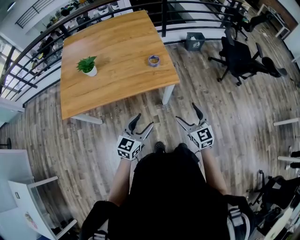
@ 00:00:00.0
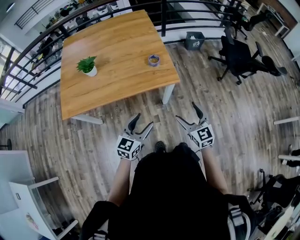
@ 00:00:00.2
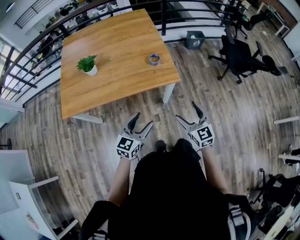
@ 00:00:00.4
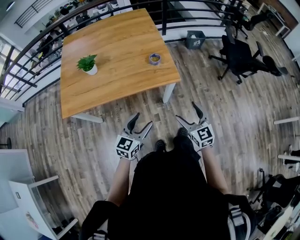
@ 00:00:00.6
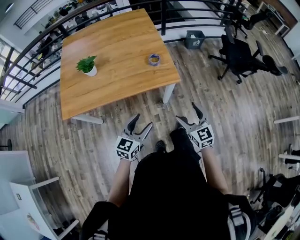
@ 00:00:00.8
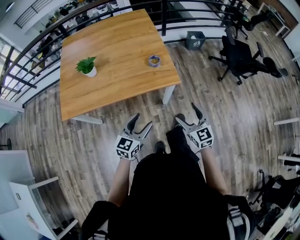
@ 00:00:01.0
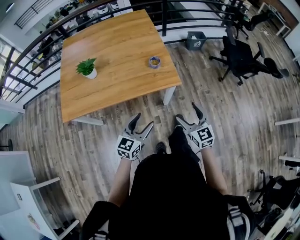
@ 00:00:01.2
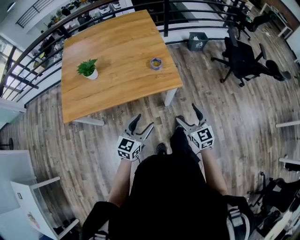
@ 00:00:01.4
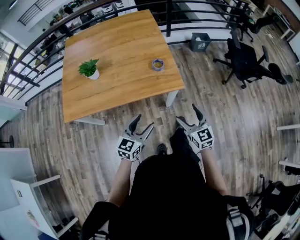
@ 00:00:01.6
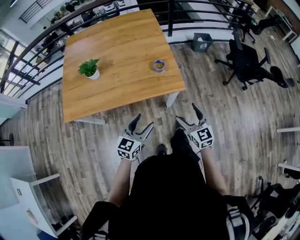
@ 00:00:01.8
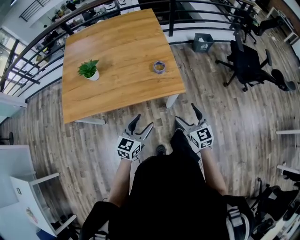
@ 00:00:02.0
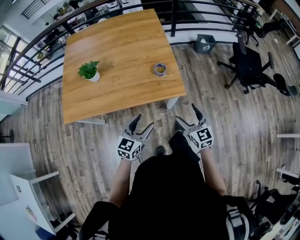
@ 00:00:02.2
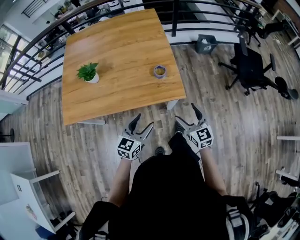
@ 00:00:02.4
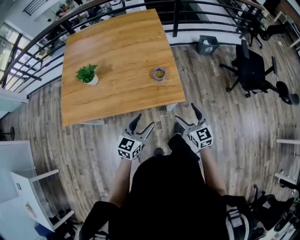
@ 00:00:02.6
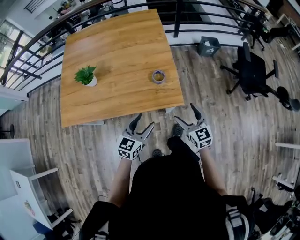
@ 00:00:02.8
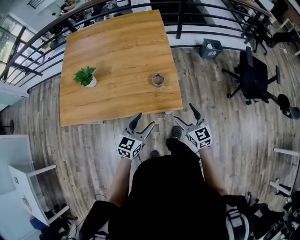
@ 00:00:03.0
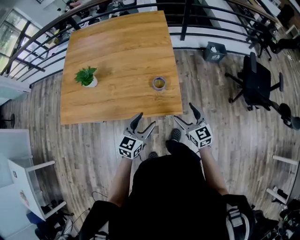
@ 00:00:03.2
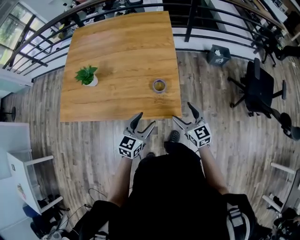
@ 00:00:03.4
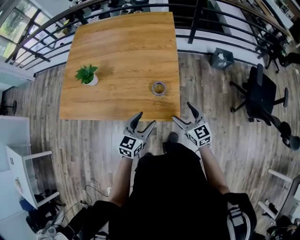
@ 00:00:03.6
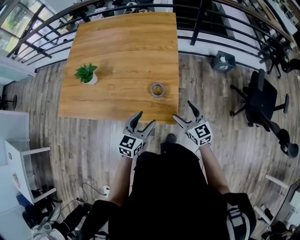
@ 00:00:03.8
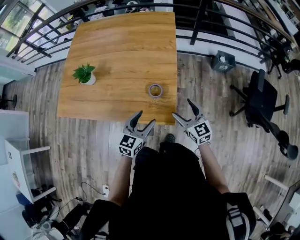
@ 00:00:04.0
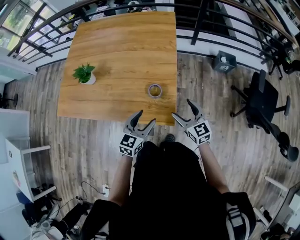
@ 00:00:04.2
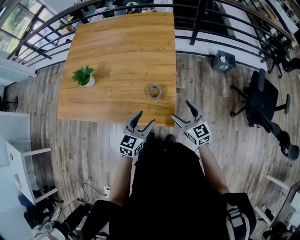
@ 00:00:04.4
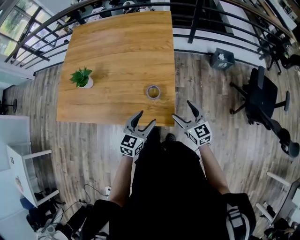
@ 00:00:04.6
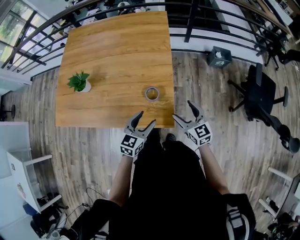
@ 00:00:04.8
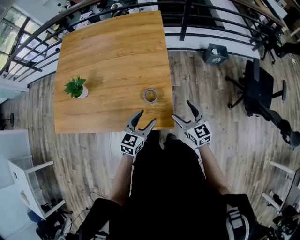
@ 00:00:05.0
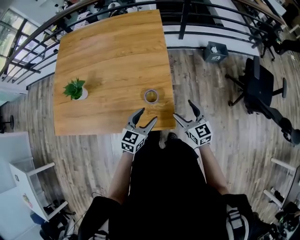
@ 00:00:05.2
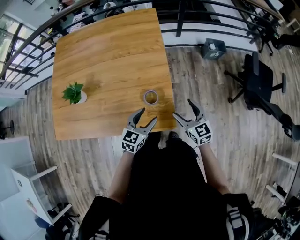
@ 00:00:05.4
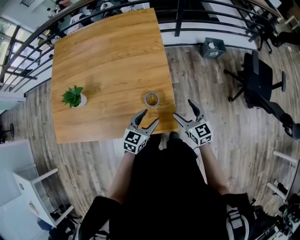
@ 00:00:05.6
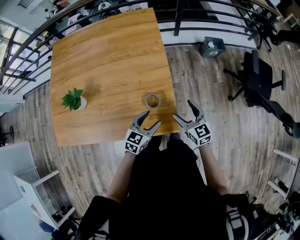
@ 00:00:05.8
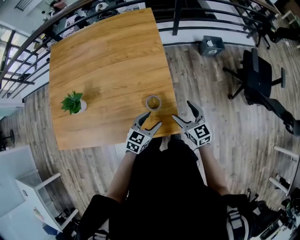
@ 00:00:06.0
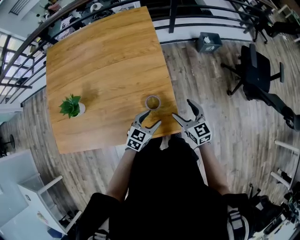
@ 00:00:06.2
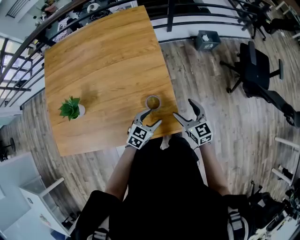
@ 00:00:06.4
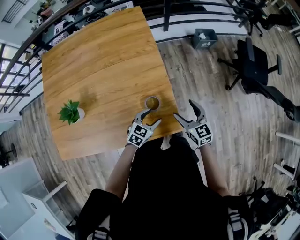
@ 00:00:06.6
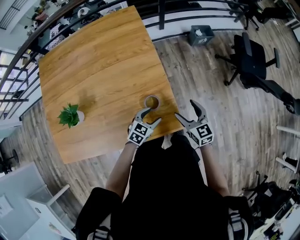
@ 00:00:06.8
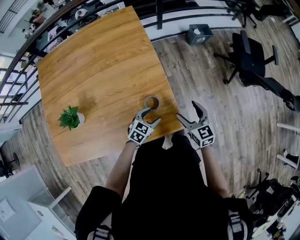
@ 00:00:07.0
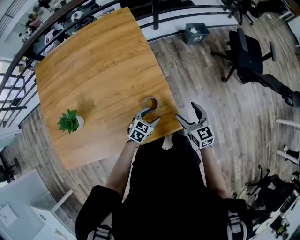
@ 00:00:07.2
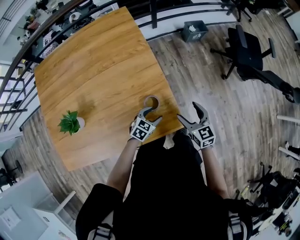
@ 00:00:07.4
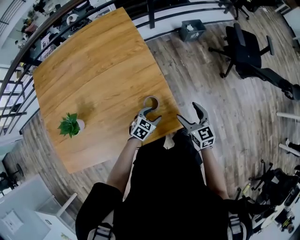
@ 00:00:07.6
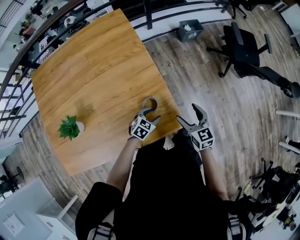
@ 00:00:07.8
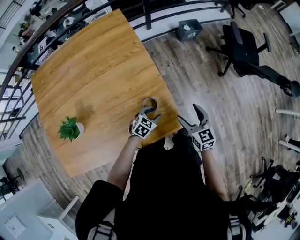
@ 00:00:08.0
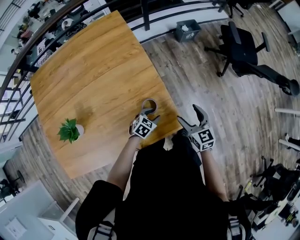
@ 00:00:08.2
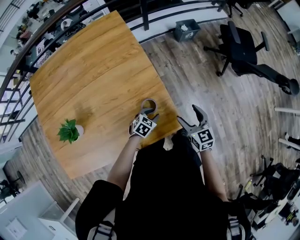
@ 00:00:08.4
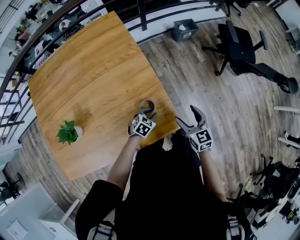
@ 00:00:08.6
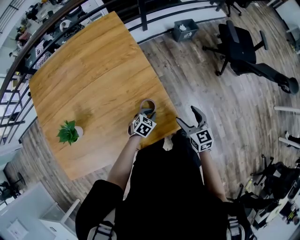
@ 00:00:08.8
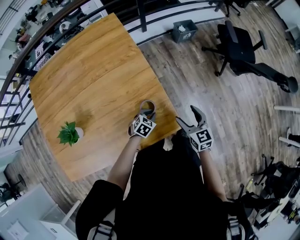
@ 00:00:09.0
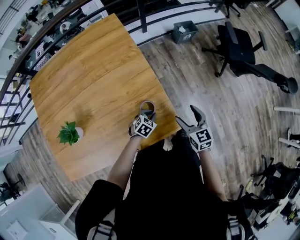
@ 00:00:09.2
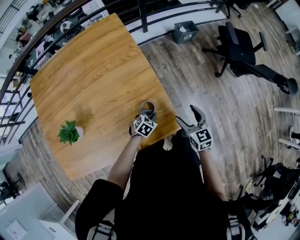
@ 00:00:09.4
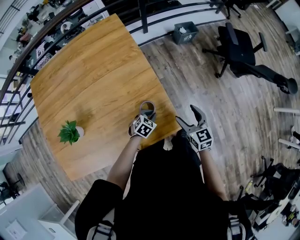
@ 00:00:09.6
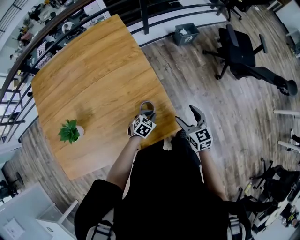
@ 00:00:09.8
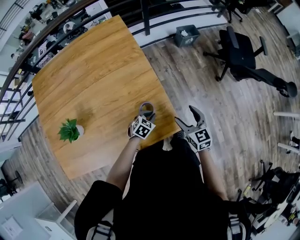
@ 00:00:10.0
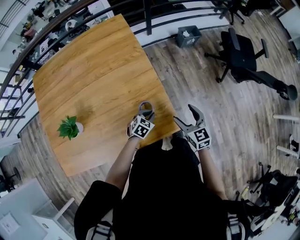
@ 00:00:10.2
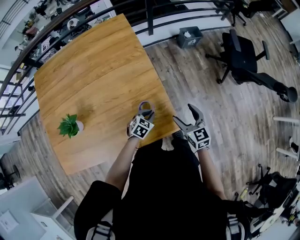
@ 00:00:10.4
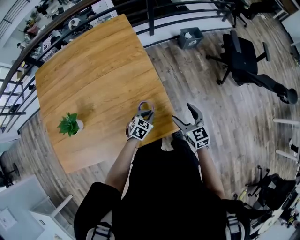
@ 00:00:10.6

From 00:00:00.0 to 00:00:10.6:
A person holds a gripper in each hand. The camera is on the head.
From 00:00:00.0 to 00:00:01.6: The right gripper moves roughly 5 cm.
From 00:00:01.6 to 00:00:03.0: Both grippers move forward, about 15 cm.
From 00:00:03.0 to 00:00:04.6: Both grippers move forward and to the right, about 15 cm.
From 00:00:04.6 to 00:00:06.0: The left gripper moves downward and forward, about 10 cm, and rotates some 20 degrees. The right gripper ends up about 5 cm from where it was.
From 00:00:06.0 to 00:00:07.6: The left gripper heads downward, covering approximately 10 cm, and rotates approximately 30 degrees.
From 00:00:07.6 to 00:00:09.0: The left gripper closes.
From 00:00:09.0 to 00:00:10.6: The left gripper goes about 5 cm upward.

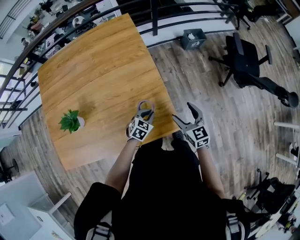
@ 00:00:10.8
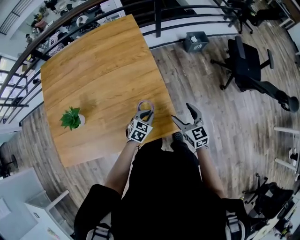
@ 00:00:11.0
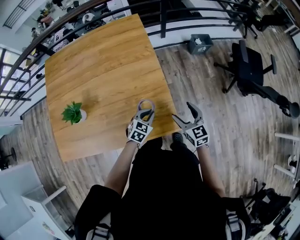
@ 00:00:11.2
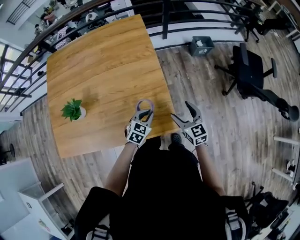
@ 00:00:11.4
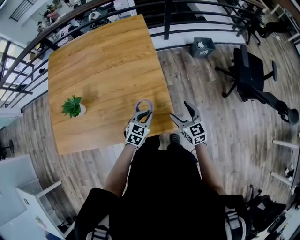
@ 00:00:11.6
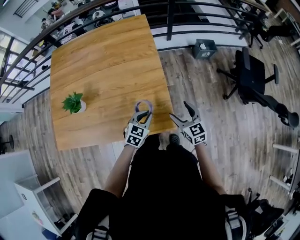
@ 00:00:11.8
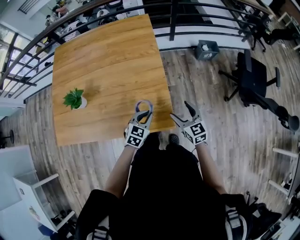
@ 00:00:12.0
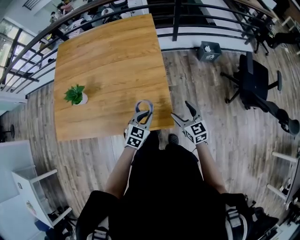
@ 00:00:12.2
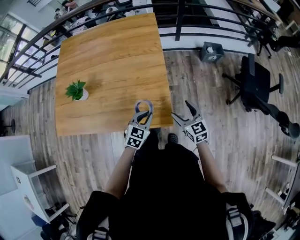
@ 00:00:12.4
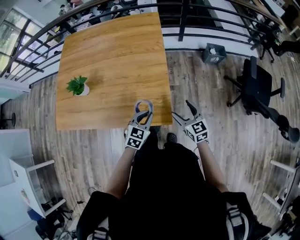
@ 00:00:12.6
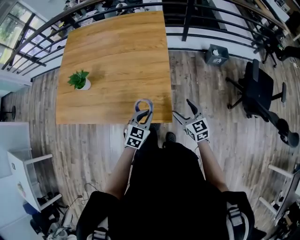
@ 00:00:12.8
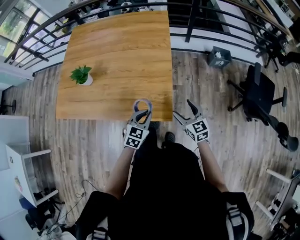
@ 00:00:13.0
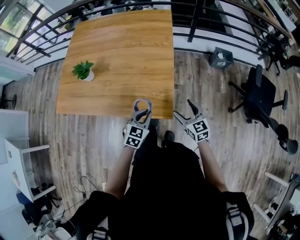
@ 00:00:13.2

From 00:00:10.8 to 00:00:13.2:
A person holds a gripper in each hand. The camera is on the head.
From 00:00:10.8 to 00:00:12.0: The left gripper is displaced upward by about 10 cm.
From 00:00:12.0 to 00:00:13.2: The left gripper heads backward, covering roughly 10 cm.

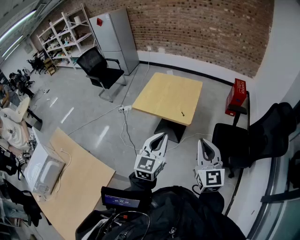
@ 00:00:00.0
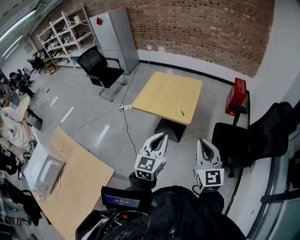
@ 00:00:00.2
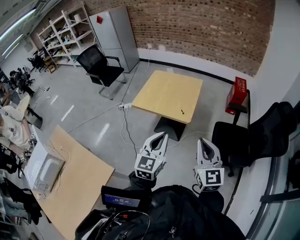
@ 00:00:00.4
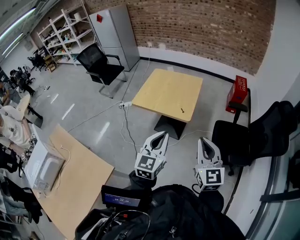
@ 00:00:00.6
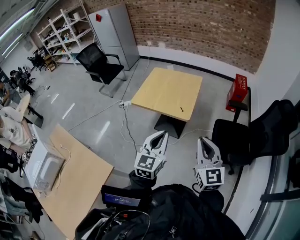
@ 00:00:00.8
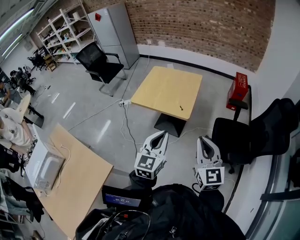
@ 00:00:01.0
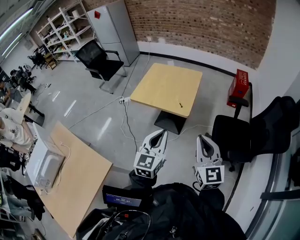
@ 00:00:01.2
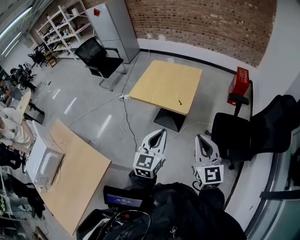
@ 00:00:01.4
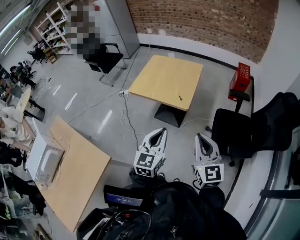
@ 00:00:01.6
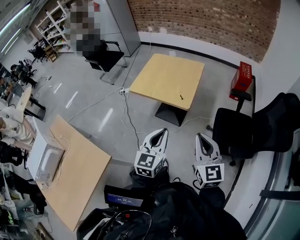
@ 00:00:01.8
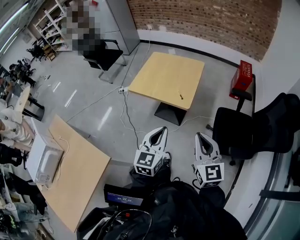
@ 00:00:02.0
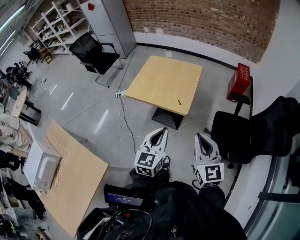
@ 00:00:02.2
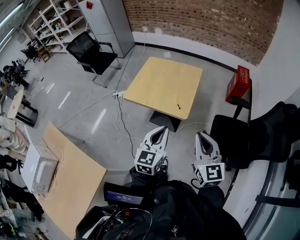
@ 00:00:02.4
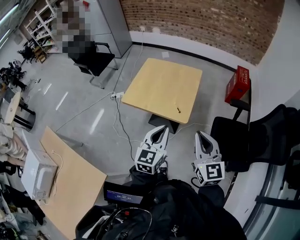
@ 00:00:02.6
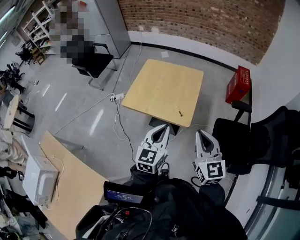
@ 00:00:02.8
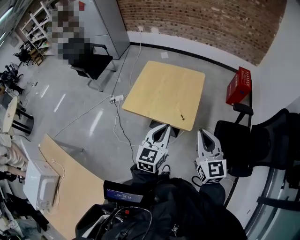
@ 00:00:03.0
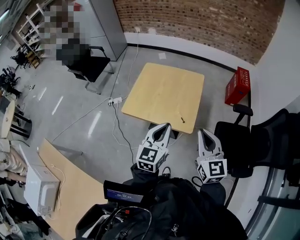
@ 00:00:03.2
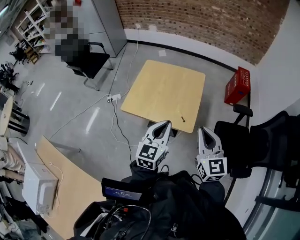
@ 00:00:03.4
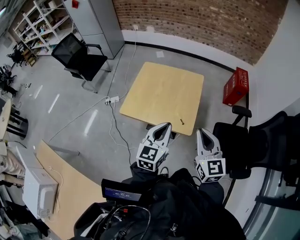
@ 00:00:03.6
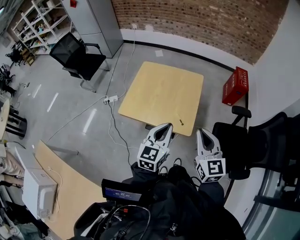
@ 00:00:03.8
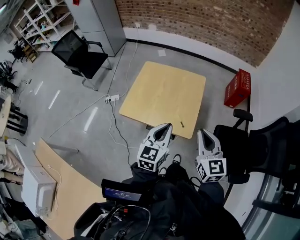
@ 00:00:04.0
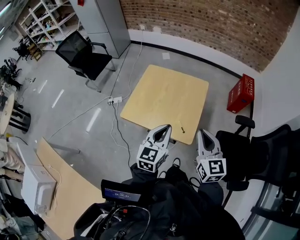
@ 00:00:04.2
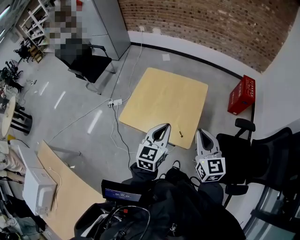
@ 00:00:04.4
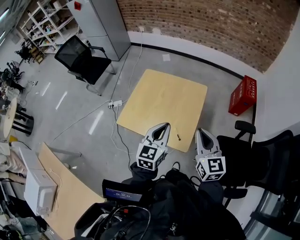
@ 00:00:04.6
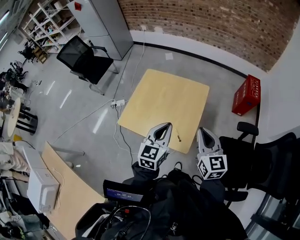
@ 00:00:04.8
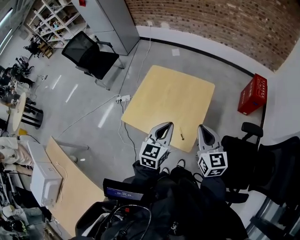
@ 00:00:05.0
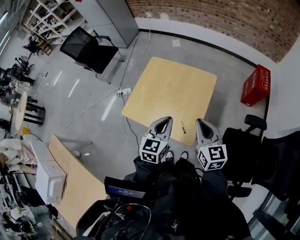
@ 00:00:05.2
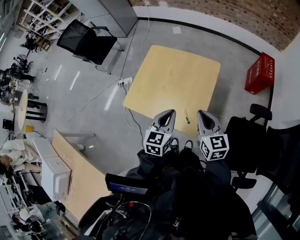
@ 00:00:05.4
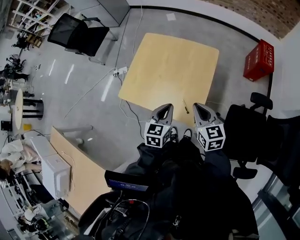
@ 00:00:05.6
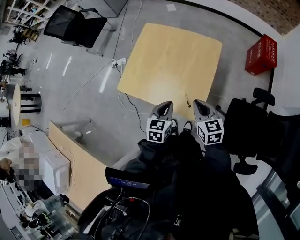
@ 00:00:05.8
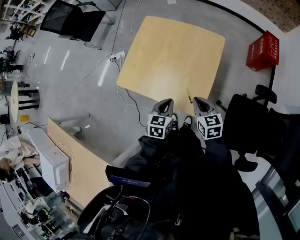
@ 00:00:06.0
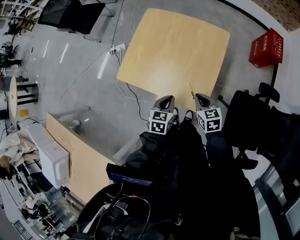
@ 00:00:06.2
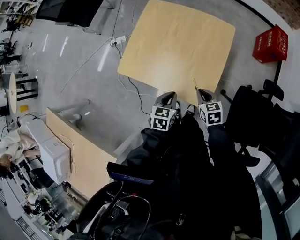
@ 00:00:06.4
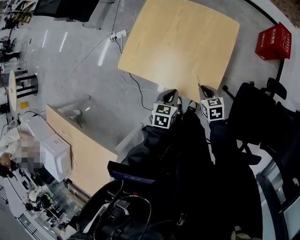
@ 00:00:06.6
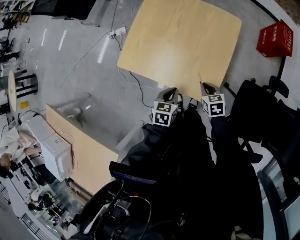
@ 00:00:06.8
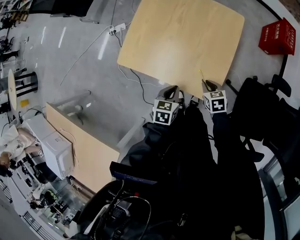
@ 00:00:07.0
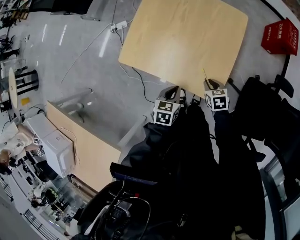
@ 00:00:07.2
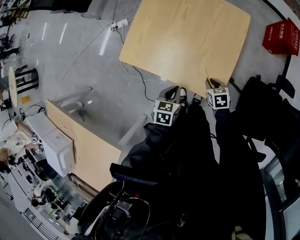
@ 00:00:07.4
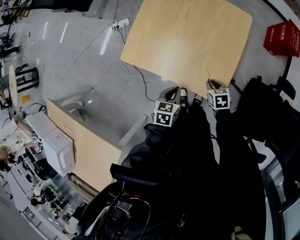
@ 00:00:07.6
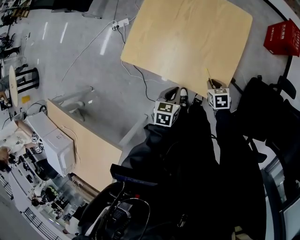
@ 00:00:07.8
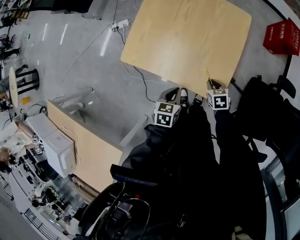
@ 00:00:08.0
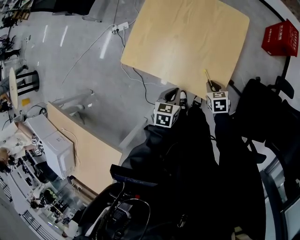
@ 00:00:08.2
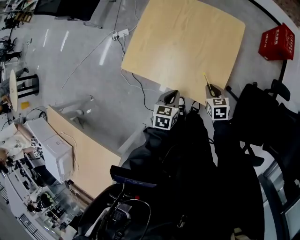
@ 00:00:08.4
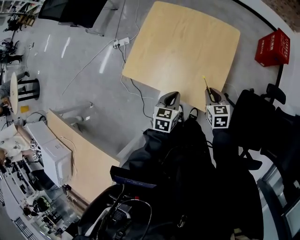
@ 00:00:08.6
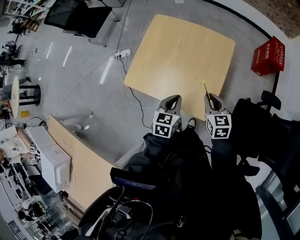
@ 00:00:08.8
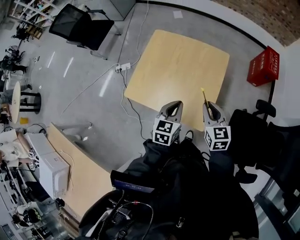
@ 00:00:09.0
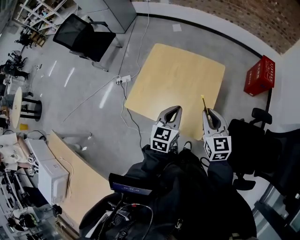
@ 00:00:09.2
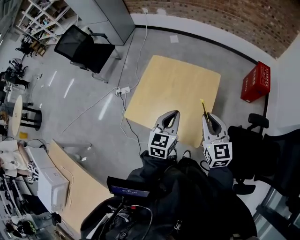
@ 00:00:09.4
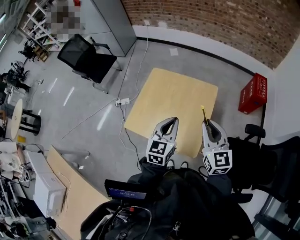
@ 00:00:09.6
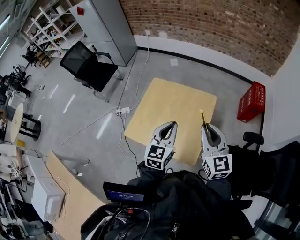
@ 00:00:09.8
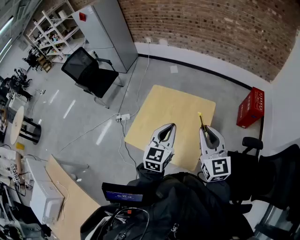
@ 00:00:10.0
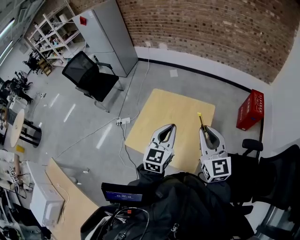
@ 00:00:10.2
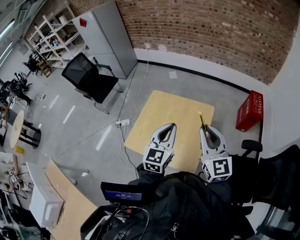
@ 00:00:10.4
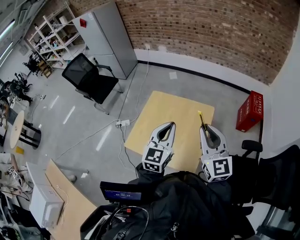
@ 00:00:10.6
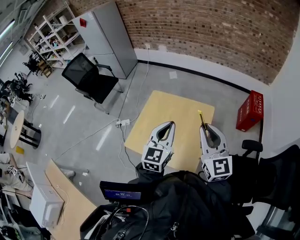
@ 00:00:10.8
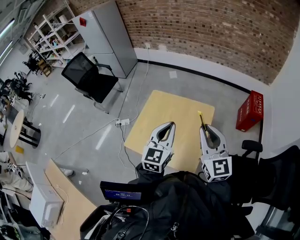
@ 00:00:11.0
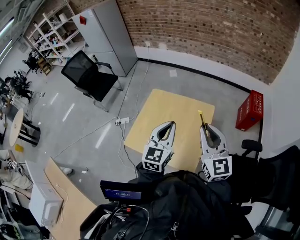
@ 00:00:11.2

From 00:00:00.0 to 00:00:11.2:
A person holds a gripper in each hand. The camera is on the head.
From 00:00:00.0 to 00:00:01.6: The right gripper moves downward, approximately 5 cm; the left gripper goes roughly 5 cm downward and to the right.
From 00:00:01.6 to 00:00:03.2: The grippers both shift forward by about 25 cm.
From 00:00:03.2 to 00:00:04.8: The two grippers go approximately 20 cm forward.
From 00:00:04.8 to 00:00:06.4: The two grippers go approximately 30 cm downward. The right gripper tips its fingers downward by about 40 degrees. Meanwhile the left gripper points its fingers roughly 30 degrees further downward.
From 00:00:06.4 to 00:00:08.0: The left gripper ends up roughly 5 cm from where it was; the right gripper heads downward, covering some 10 cm.
From 00:00:08.0 to 00:00:09.6: The two grippers go roughly 40 cm upward. The right gripper tilts its fingers some 50 degrees upward. The left gripper points its fingers some 30 degrees further upward.
From 00:00:09.6 to 00:00:11.2: Both grippers move upward, approximately 10 cm.
